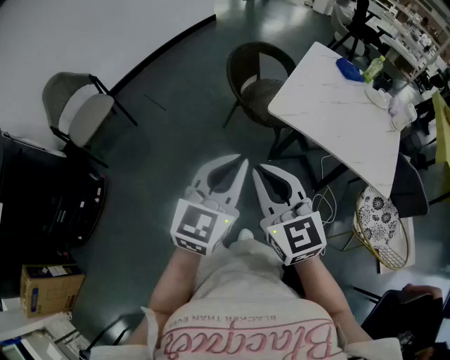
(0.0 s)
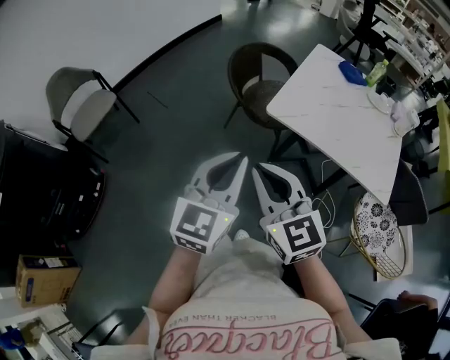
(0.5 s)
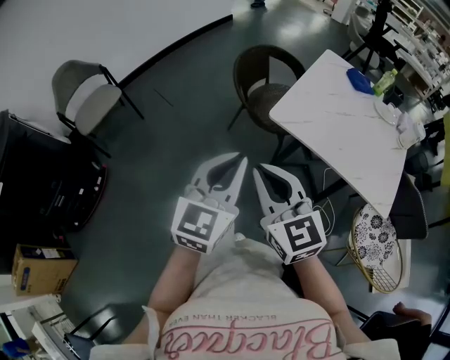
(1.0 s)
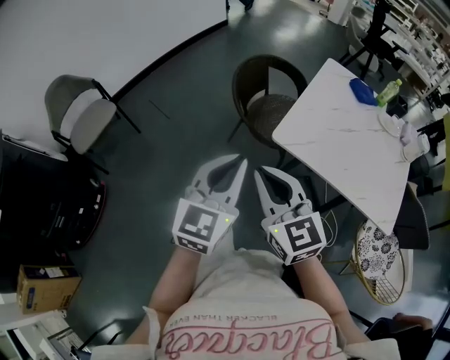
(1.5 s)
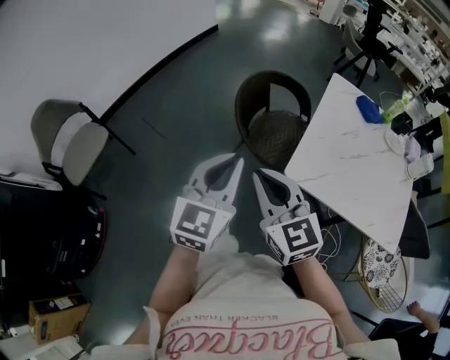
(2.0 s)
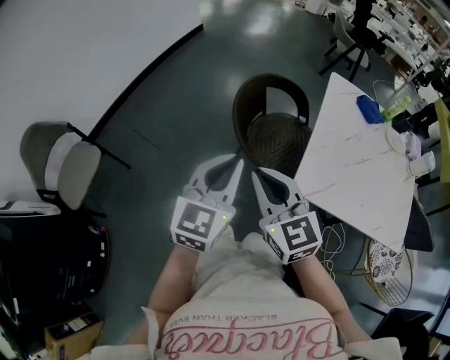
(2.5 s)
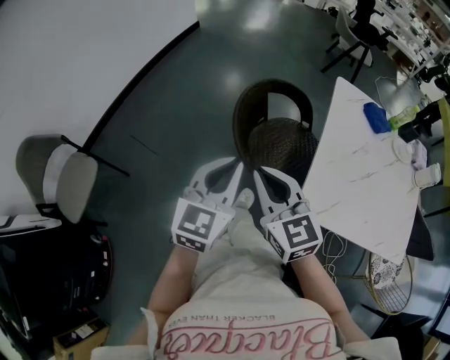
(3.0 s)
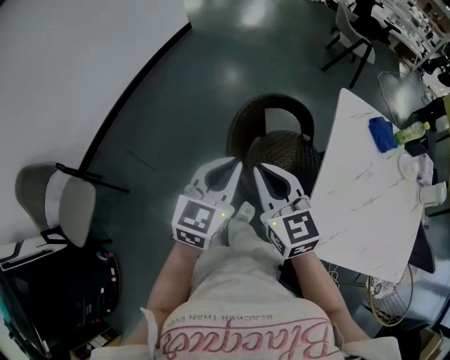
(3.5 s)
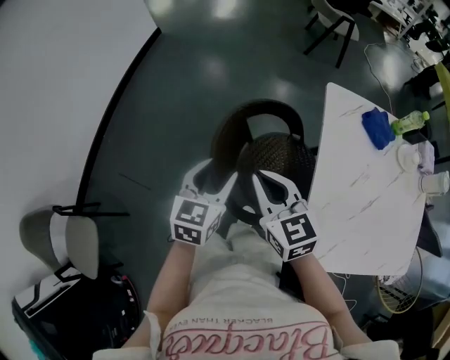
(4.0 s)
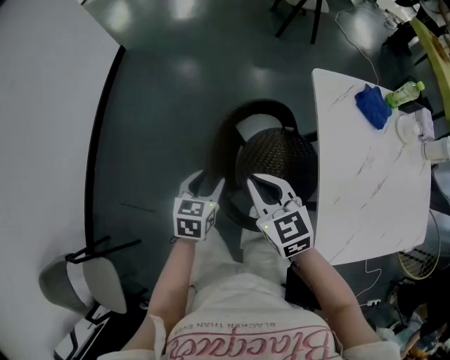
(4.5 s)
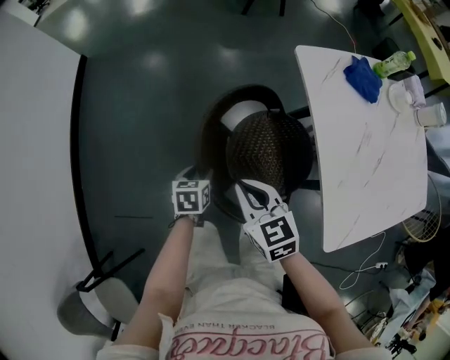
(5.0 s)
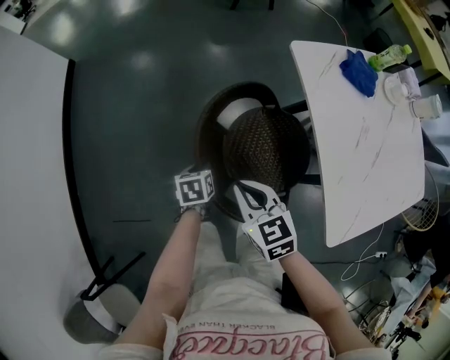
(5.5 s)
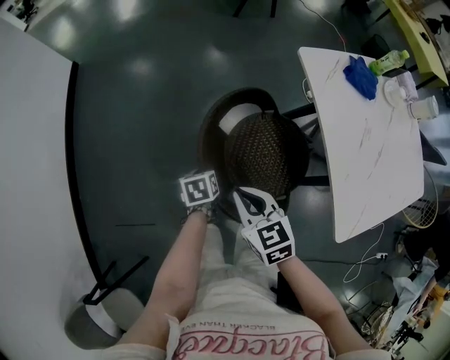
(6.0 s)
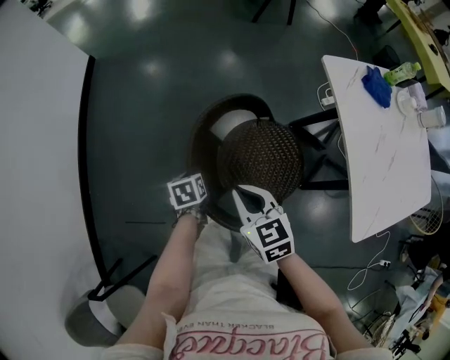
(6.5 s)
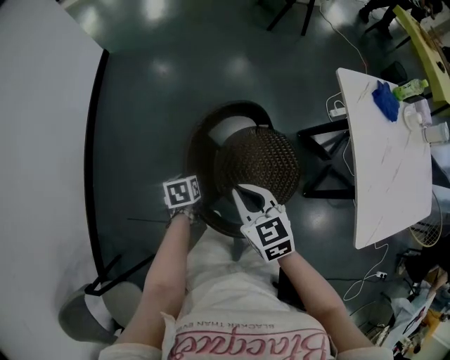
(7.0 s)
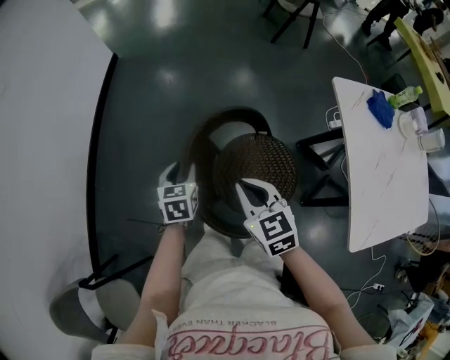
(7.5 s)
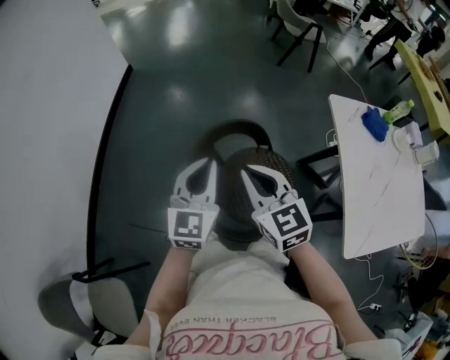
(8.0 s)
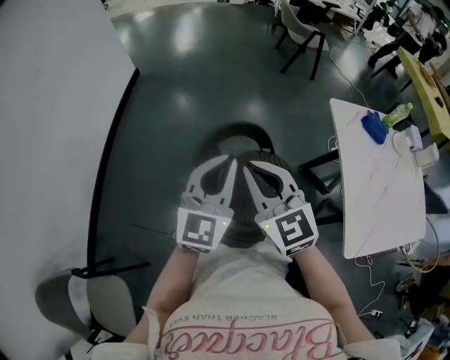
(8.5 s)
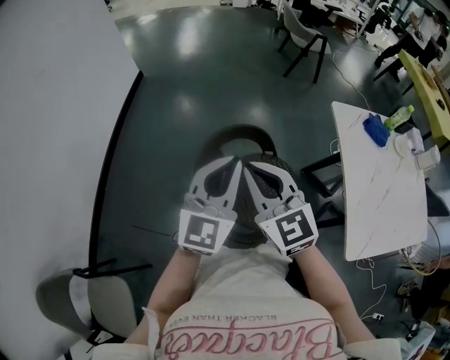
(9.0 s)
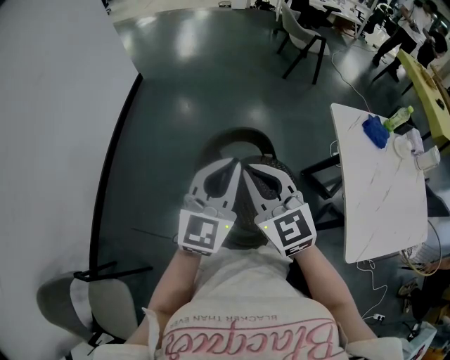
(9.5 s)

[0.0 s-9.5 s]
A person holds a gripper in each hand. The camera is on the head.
0.0 to 2.0 s: Both grippers move forward, about 30 cm.
2.0 to 4.0 s: The pair of grippers is taken forward, roughly 40 cm. The left gripper turns by roughly 30 degrees, and opens, while the right gripper rotates approximately 20 degrees.
4.0 to 5.5 s: The left gripper heads downward and forward, covering some 30 cm, points its fingers roughly 30 degrees further downward, and closes, while the right gripper shifts approximately 15 cm downward, forward and to the left, and changes its angle by about 30 degrees.
5.5 to 7.5 s: The right gripper goes about 15 cm to the left; the left gripper shifts roughly 25 cm to the left and upward, and rotates approximately 30 degrees.
7.5 to 9.5 s: The left gripper heads upward and to the right, covering about 30 cm, tilts its fingers some 40 degrees upward, and closes, while the right gripper moves upward, about 15 cm, and swivels roughly 30 degrees.

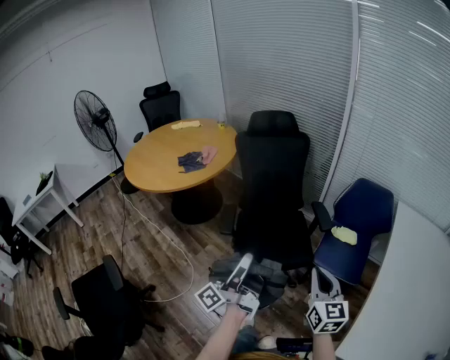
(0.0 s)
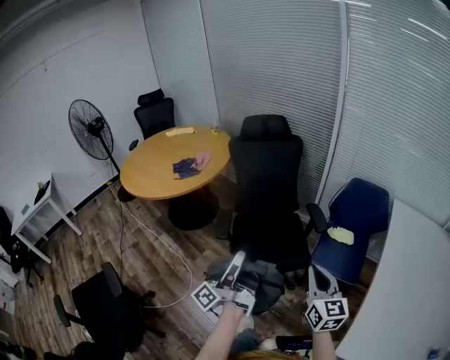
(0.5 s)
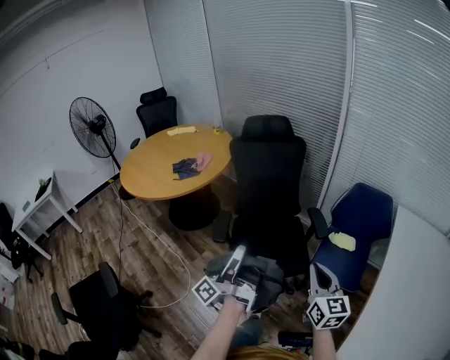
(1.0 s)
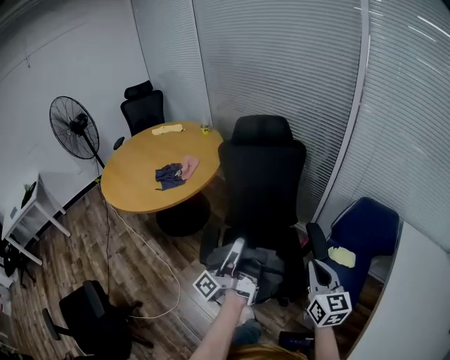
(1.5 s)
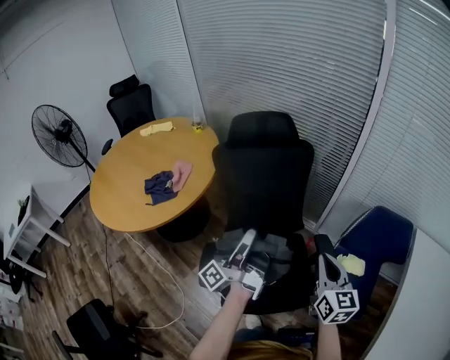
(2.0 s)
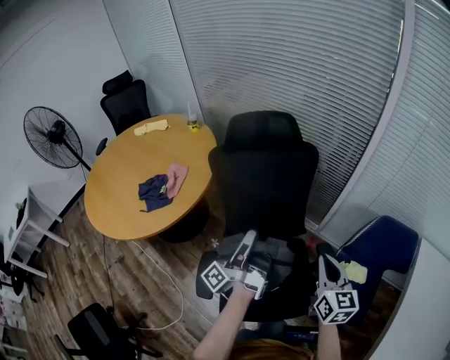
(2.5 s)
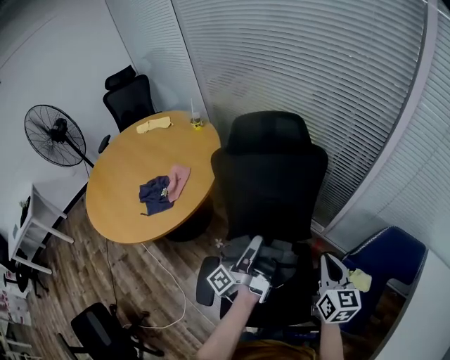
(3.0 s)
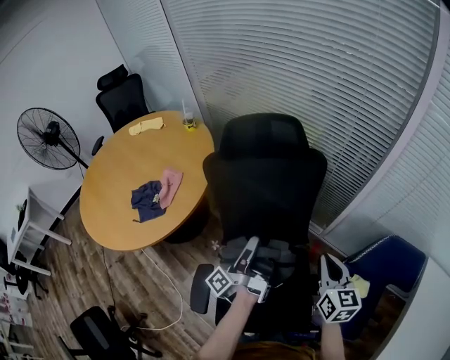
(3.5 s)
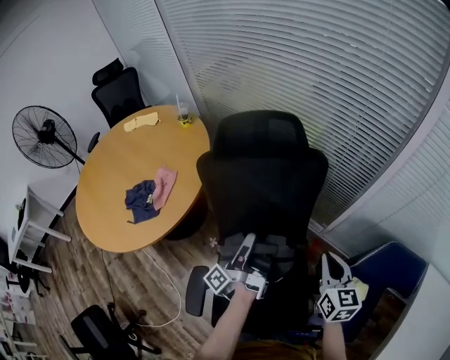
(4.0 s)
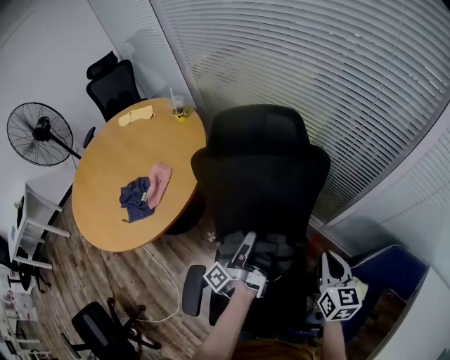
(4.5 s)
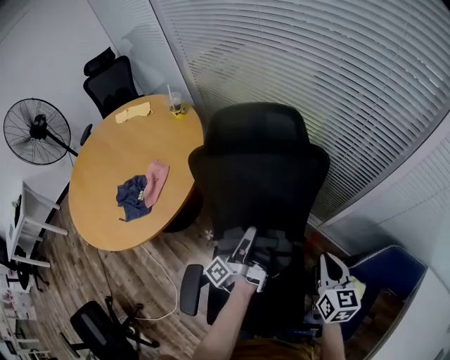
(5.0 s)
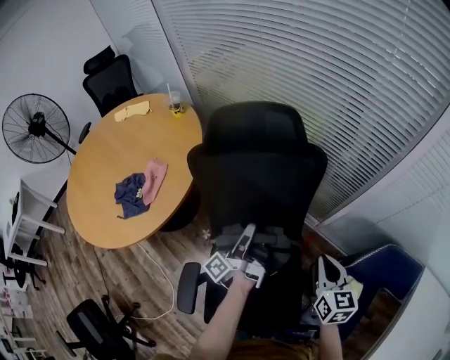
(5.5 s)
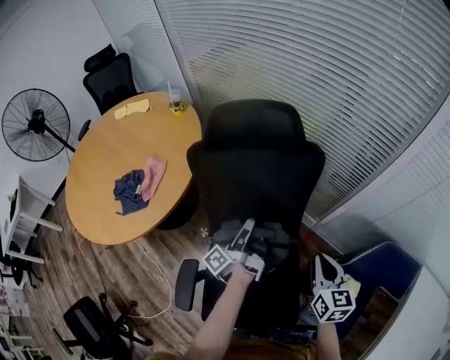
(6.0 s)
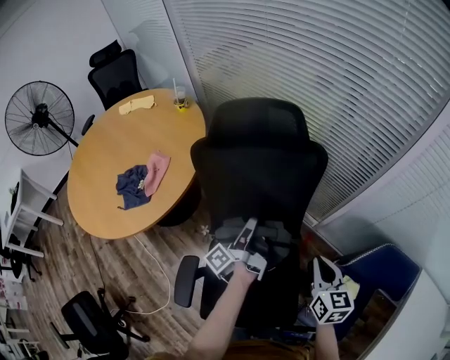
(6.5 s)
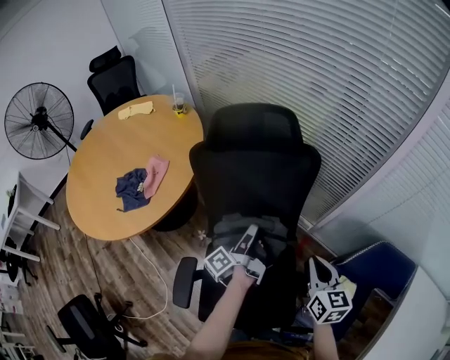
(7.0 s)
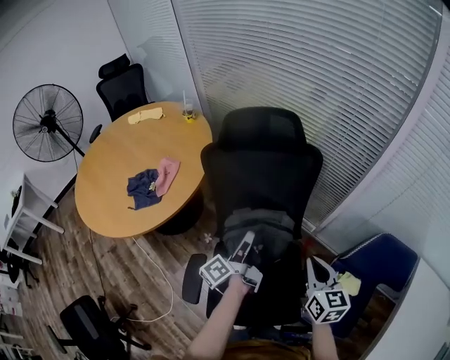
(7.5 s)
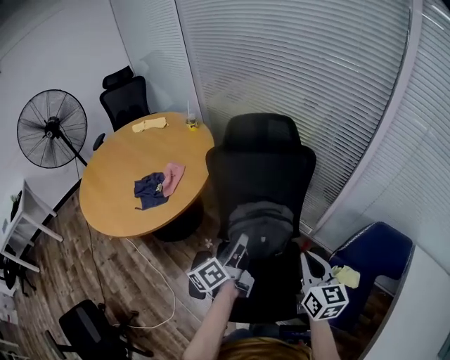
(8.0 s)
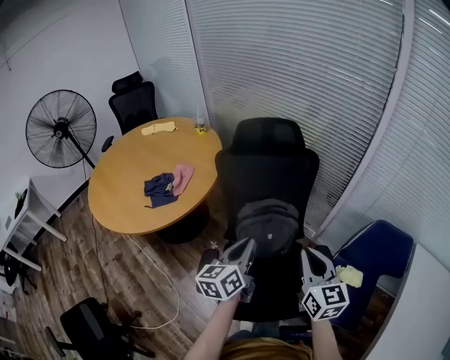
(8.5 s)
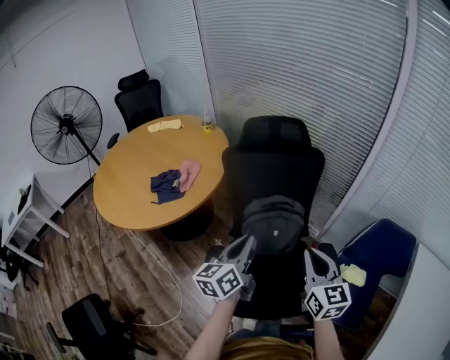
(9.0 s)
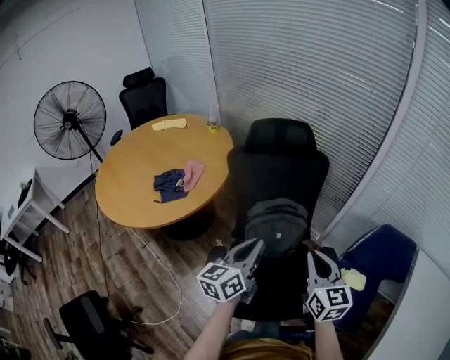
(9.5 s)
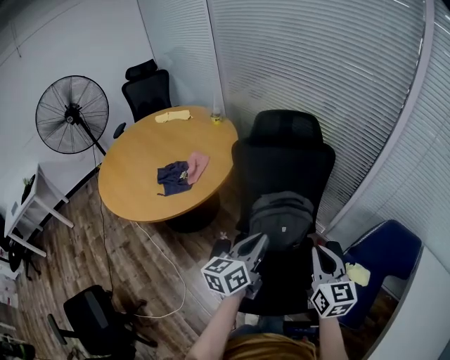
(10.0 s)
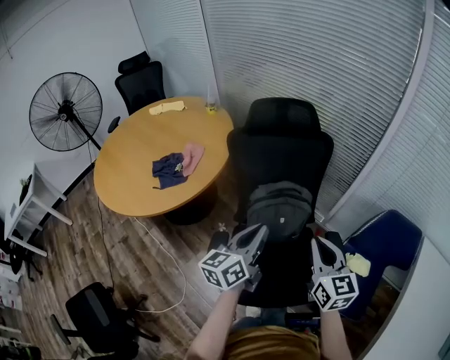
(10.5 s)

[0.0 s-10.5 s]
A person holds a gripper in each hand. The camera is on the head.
0.0 to 2.0 s: The right gripper ends up approximately 40 cm from where it was.
2.0 to 4.0 s: The right gripper changes place by approximately 25 cm.
6.5 to 8.5 s: The right gripper shifts by about 25 cm.

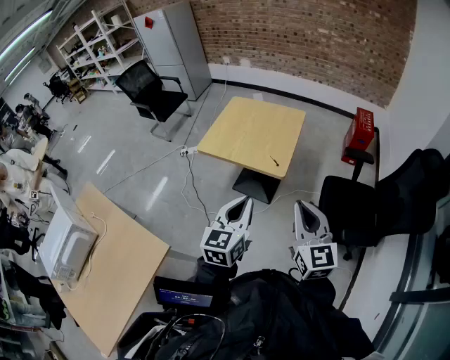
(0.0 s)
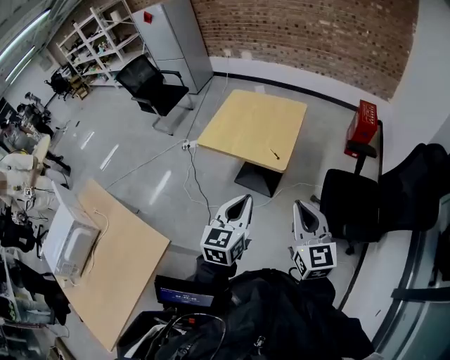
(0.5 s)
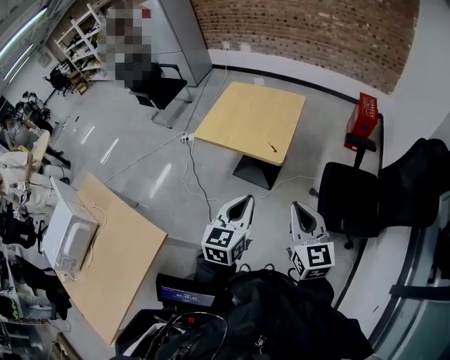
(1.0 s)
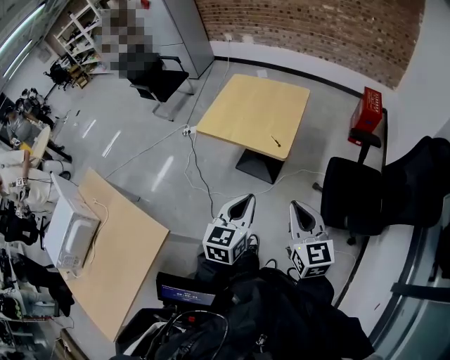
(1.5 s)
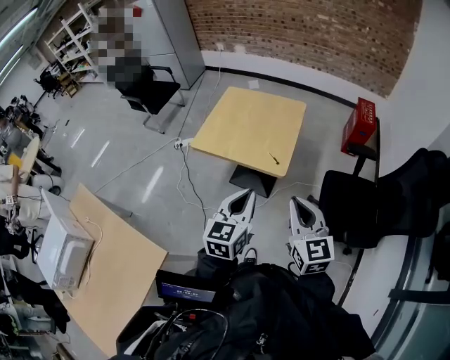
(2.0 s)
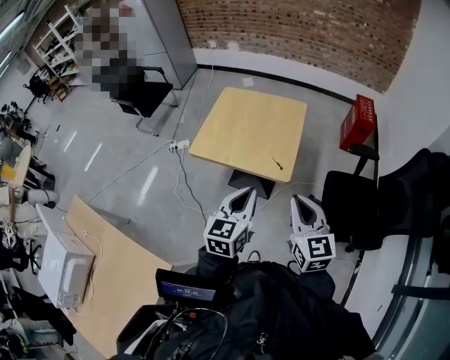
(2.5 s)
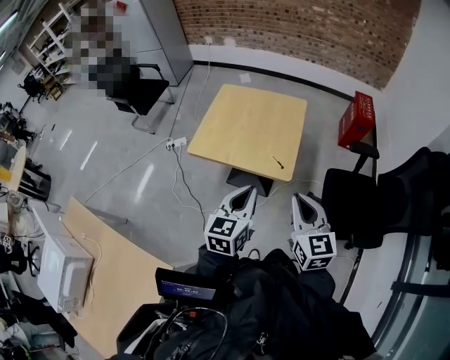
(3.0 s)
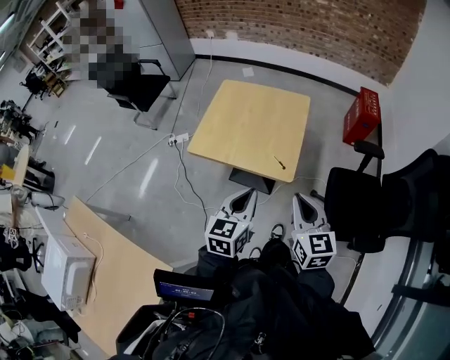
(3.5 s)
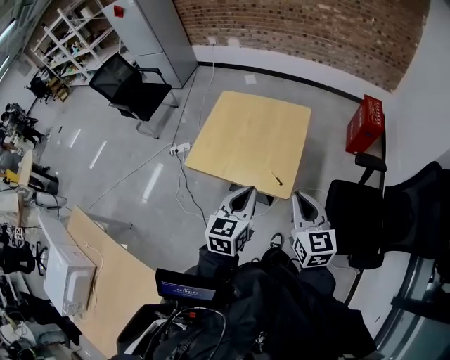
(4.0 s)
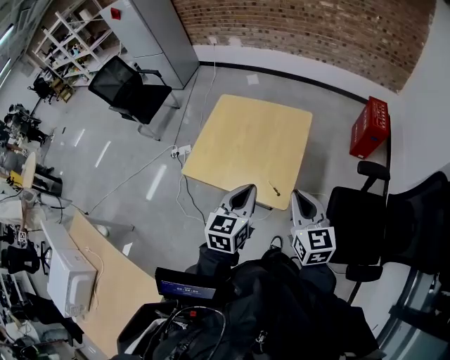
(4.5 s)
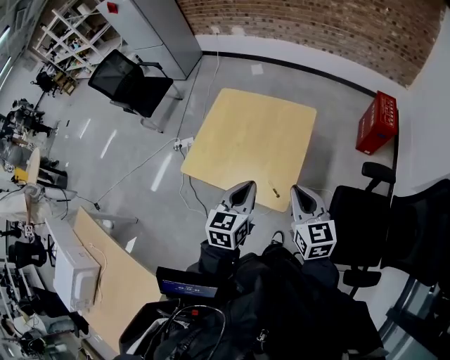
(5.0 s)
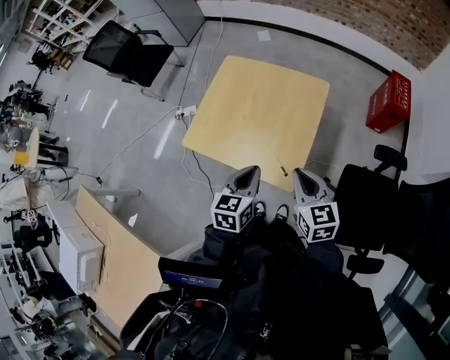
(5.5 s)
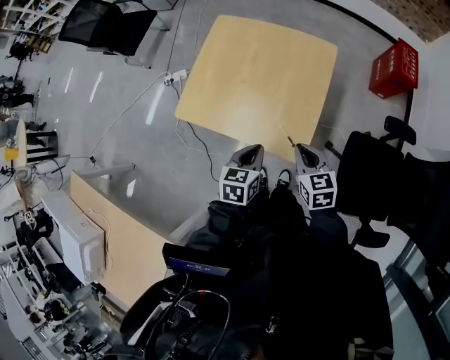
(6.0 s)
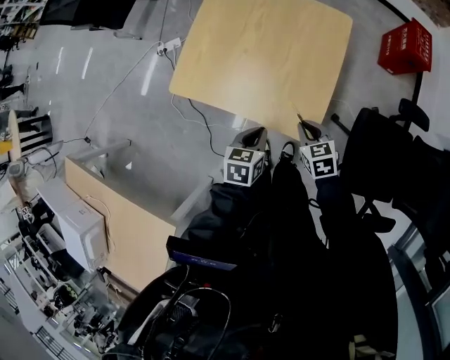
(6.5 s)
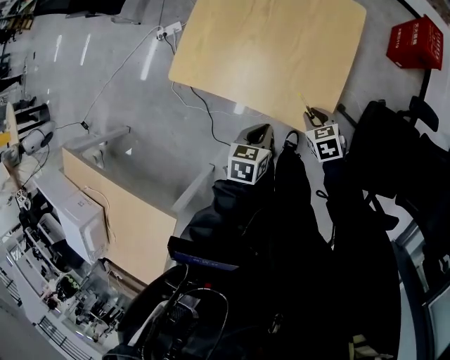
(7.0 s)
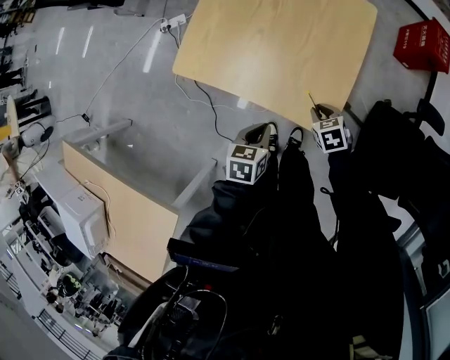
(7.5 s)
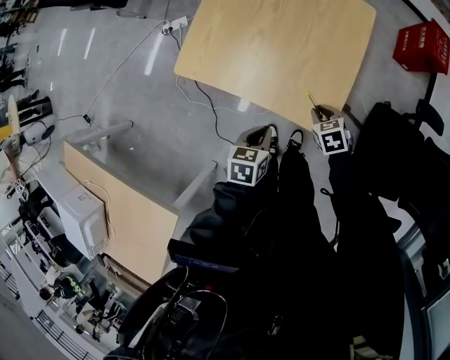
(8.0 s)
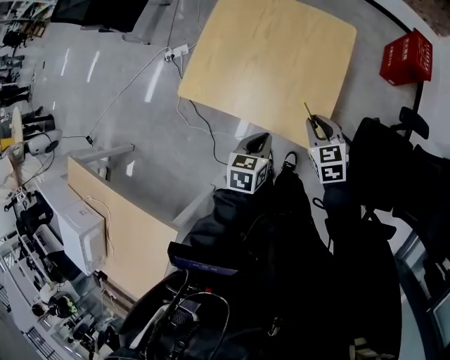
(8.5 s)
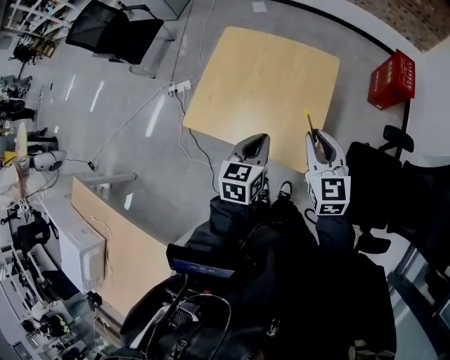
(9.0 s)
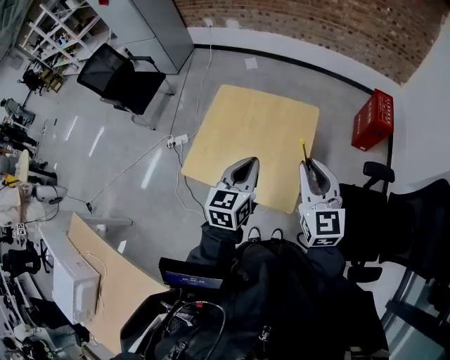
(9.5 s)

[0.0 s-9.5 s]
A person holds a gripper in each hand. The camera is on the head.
0.0 to 2.0 s: The two grippers go approximately 10 cm forward.
2.0 to 4.0 s: The grippers both shift forward by roughly 20 cm.
4.0 to 5.5 s: The grippers both shift forward and downward by about 15 cm.
5.5 to 7.5 s: Both grippers move downward, approximately 30 cm. The right gripper tilts its fingers about 40 degrees downward, while the left gripper rotates roughly 30 degrees.
7.5 to 9.5 s: Both grippers move upward, some 40 cm. The left gripper angles its fingers upward, by approximately 30 degrees, while the right gripper points its fingers about 60 degrees further upward.
